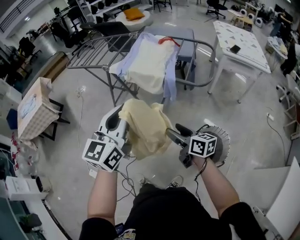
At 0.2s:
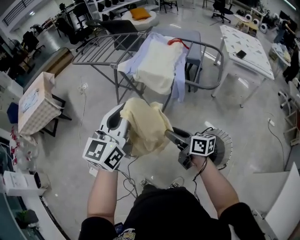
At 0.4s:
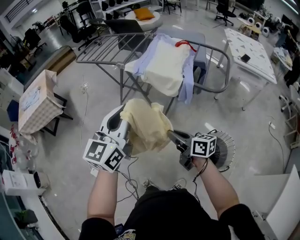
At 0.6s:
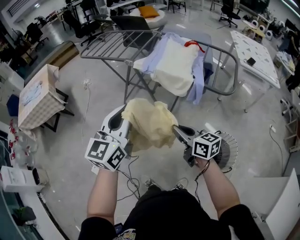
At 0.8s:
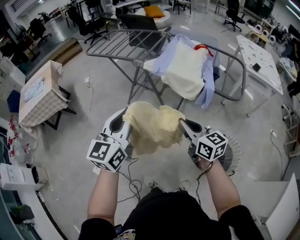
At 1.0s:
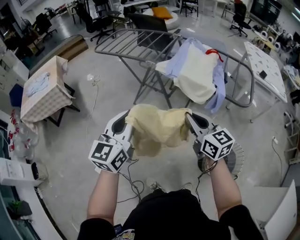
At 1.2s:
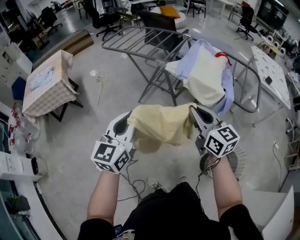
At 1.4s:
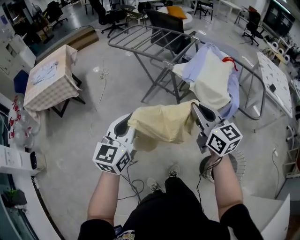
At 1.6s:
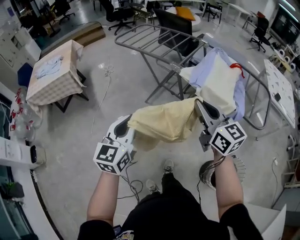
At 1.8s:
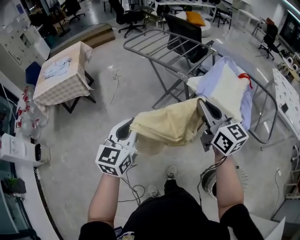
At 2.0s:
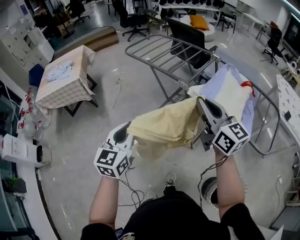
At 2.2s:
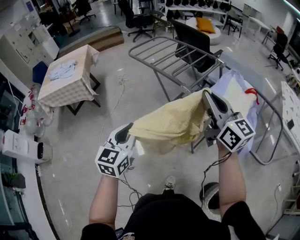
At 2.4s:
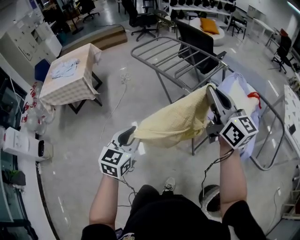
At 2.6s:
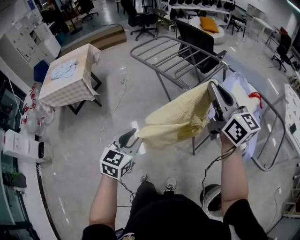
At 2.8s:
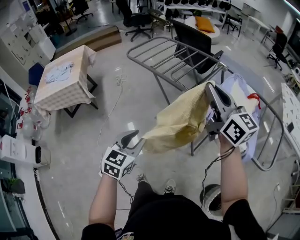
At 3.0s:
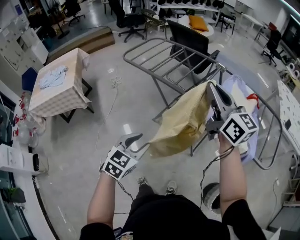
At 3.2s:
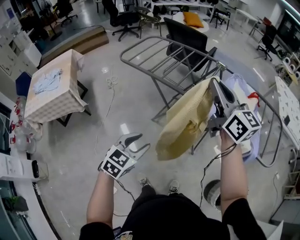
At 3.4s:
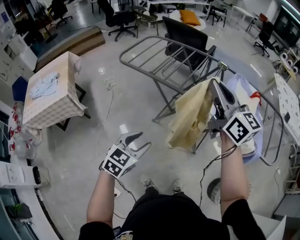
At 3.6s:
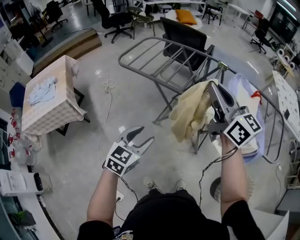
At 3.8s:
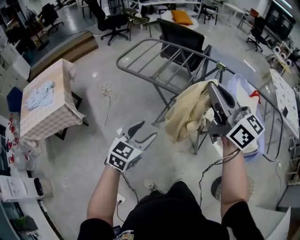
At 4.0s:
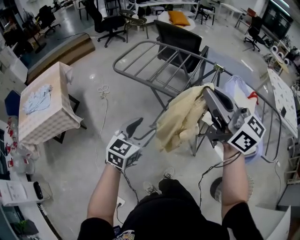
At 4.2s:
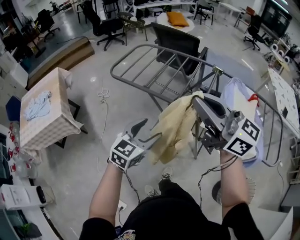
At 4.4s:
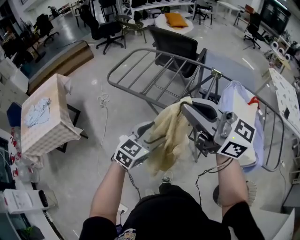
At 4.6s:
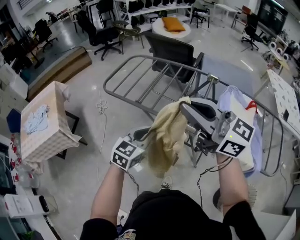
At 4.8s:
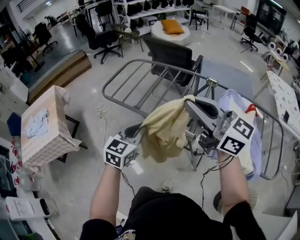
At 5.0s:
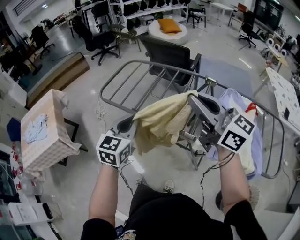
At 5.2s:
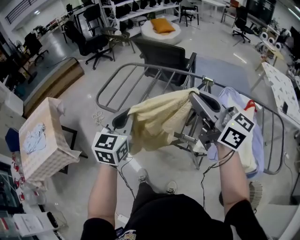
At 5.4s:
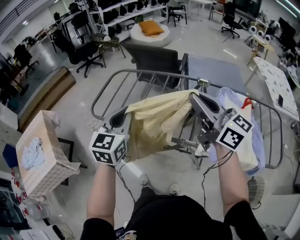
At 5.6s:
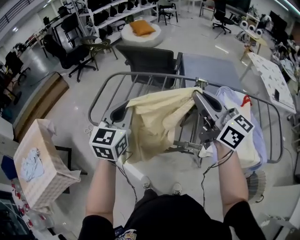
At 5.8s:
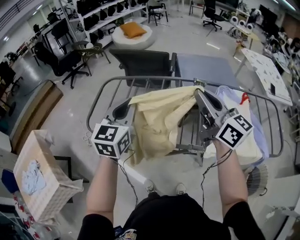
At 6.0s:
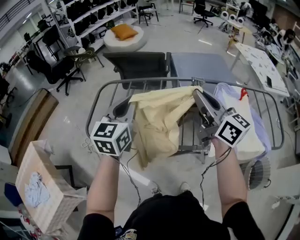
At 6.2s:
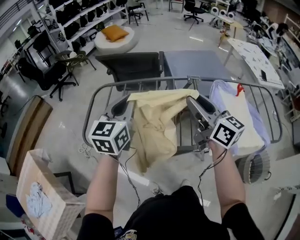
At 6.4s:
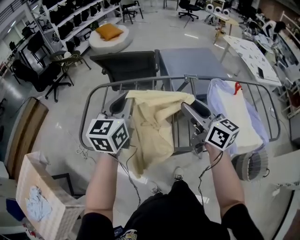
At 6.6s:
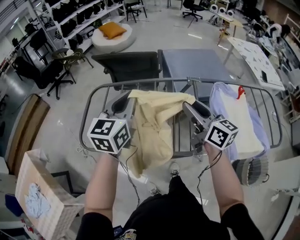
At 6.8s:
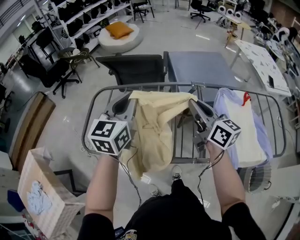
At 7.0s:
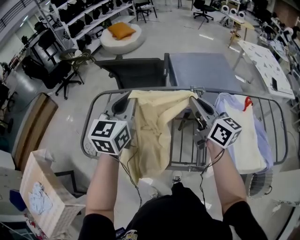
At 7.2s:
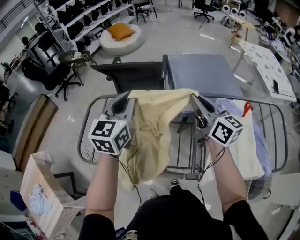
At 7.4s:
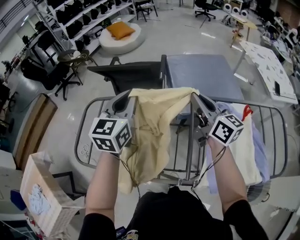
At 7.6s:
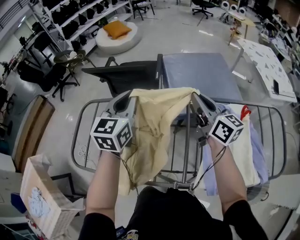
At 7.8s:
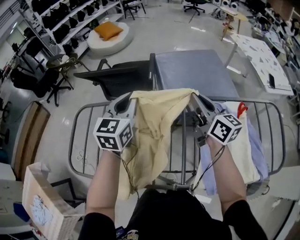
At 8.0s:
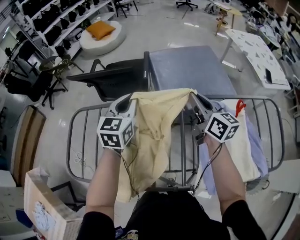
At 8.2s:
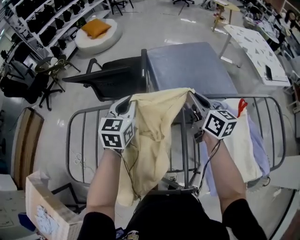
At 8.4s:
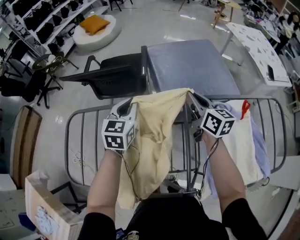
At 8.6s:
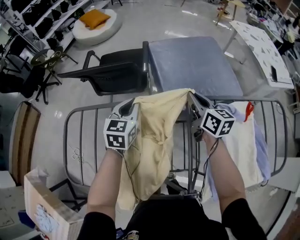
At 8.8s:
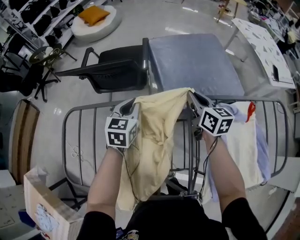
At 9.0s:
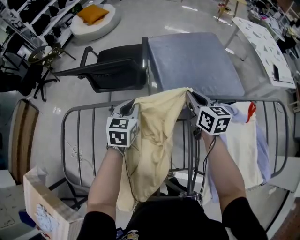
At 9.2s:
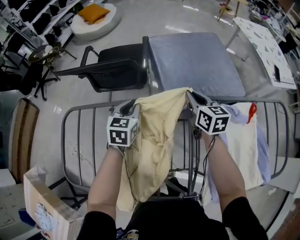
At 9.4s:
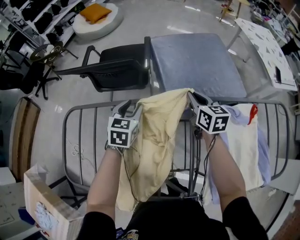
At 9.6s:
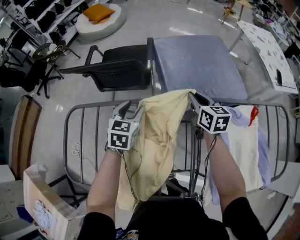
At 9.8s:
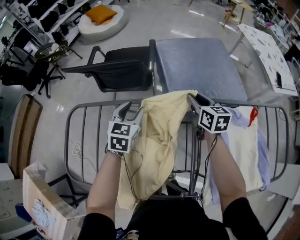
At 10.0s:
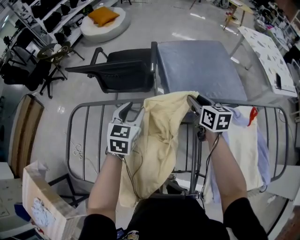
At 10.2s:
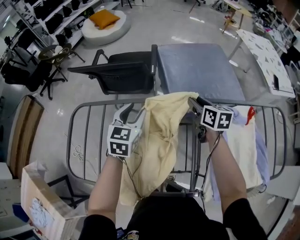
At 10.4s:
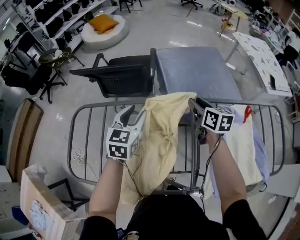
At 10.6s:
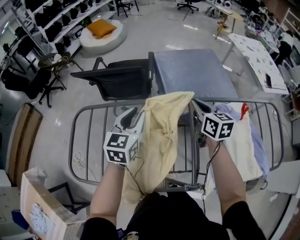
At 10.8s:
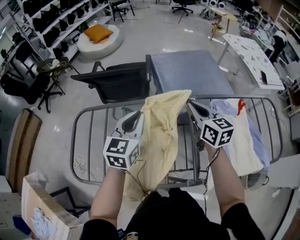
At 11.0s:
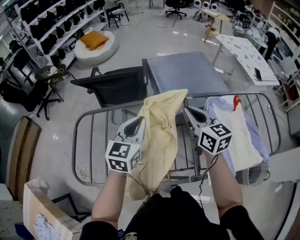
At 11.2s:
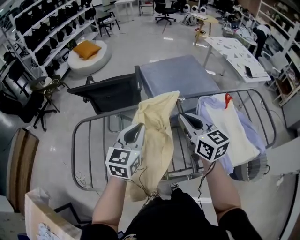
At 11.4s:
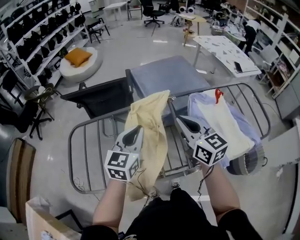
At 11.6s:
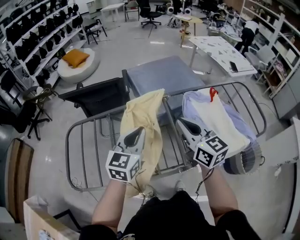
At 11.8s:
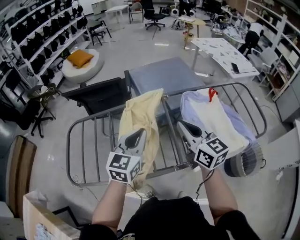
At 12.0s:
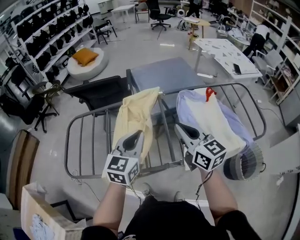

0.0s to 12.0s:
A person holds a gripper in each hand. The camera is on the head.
0.0s to 1.6s: The right gripper goes approximately 40 cm to the left, forward and upward, changes its angle by approximately 40 degrees, and closes up. Meanwhile the left gripper moves to the left, approximately 35 cm, and changes its angle by roughly 20 degrees.
1.6s to 3.0s: The left gripper moves forward and downward, about 15 cm, rotates approximately 30 degrees, and opens. The right gripper moves forward, some 25 cm.
3.0s to 4.4s: The right gripper is displaced to the left and forward by approximately 15 cm, and turns by about 20 degrees. Meanwhile the left gripper shifts about 20 cm forward, and opens.
4.4s to 6.0s: The right gripper moves some 25 cm, and swivels about 50 degrees; the left gripper shifts by about 35 cm, and closes up.
6.0s to 7.6s: The right gripper heads forward, to the right and downward, covering roughly 25 cm, and opens, then closes again, while the left gripper goes roughly 25 cm forward and to the right.
7.6s to 9.0s: The two grippers go roughly 25 cm downward and forward. The left gripper turns by roughly 20 degrees, while the right gripper swivels roughly 30 degrees.
9.0s to 10.4s: The left gripper heads upward and backward, covering some 10 cm, and opens its fingers. Meanwhile the right gripper shifts by approximately 5 cm, and opens up.
10.4s to 12.0s: The right gripper moves backward and upward, approximately 35 cm, changes its angle by about 30 degrees, and closes its fingers. Meanwhile the left gripper heads backward and to the right, covering roughly 25 cm, and closes its fingers.

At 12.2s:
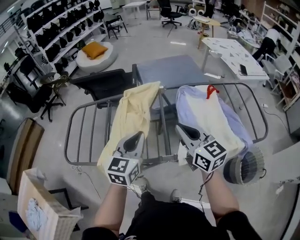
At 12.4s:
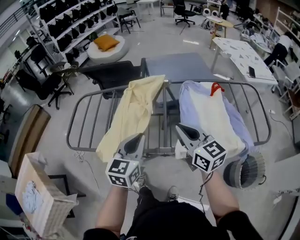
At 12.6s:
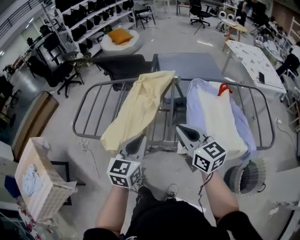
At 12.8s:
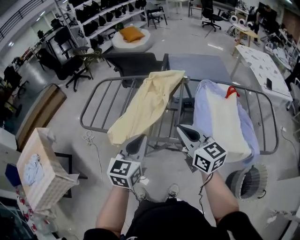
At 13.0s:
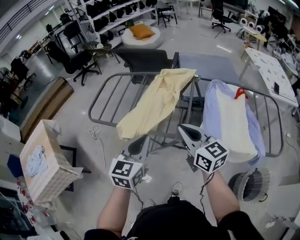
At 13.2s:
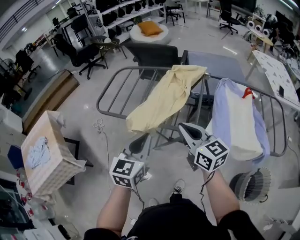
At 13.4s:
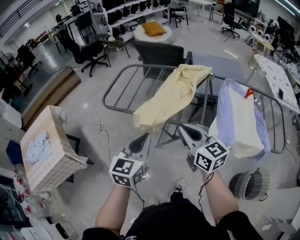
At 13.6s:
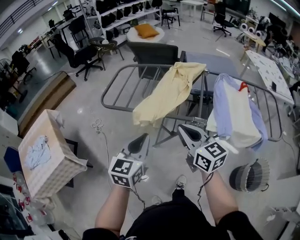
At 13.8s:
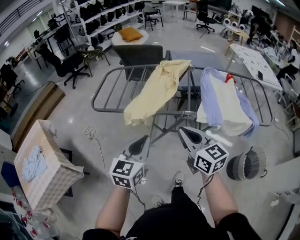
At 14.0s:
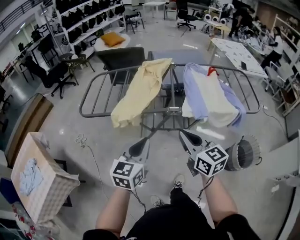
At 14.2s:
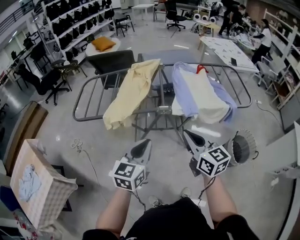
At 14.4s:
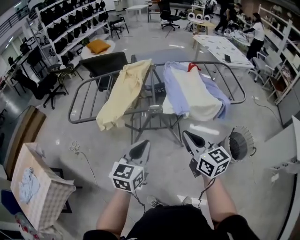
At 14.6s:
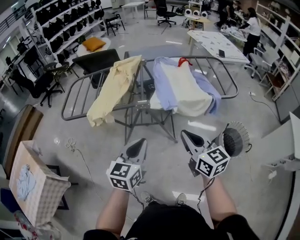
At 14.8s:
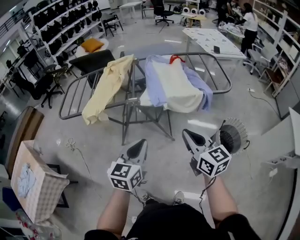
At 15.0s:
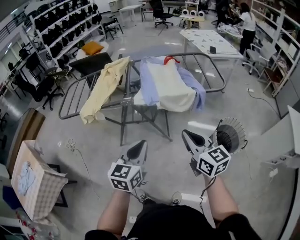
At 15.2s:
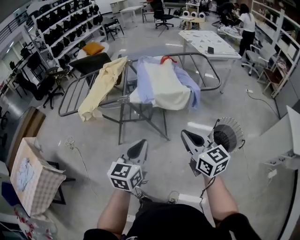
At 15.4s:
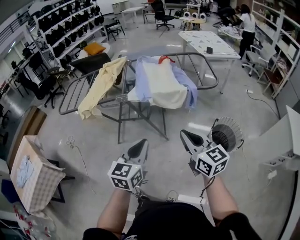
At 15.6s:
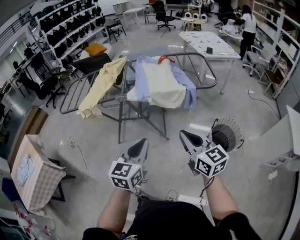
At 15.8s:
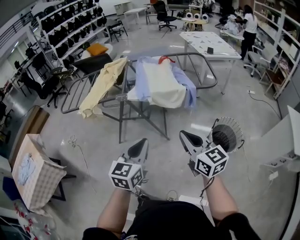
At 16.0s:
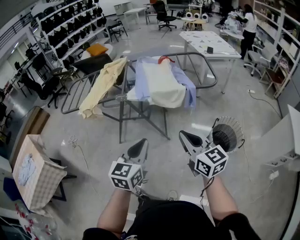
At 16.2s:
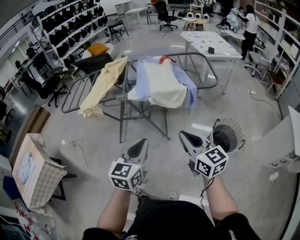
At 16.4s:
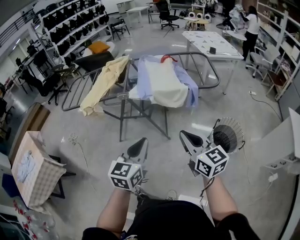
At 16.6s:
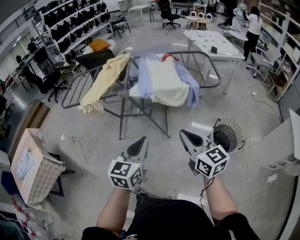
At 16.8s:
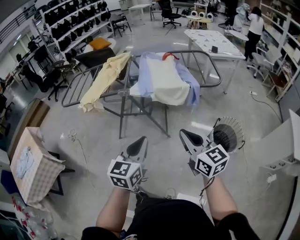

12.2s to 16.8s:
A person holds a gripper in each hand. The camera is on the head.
12.2s to 13.8s: The two grippers go some 30 cm backward and to the left.
13.8s to 15.2s: The two grippers go about 40 cm to the right and backward.
15.2s to 16.8s: The grippers stay close to where they were, moving slightly.

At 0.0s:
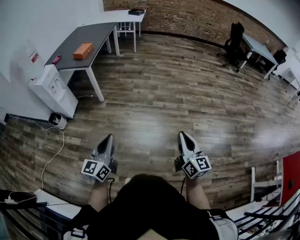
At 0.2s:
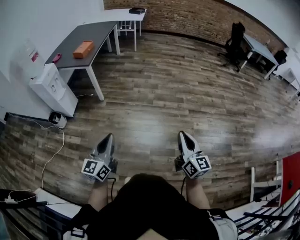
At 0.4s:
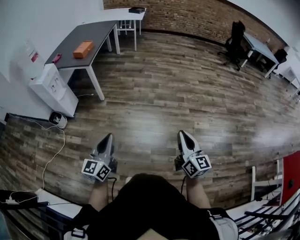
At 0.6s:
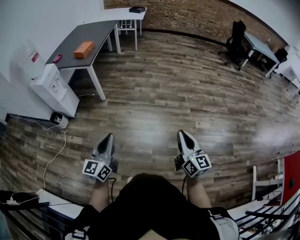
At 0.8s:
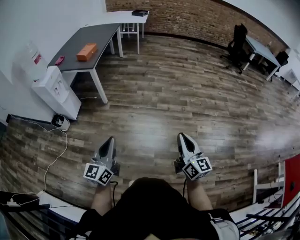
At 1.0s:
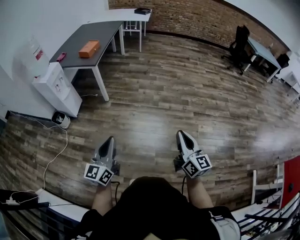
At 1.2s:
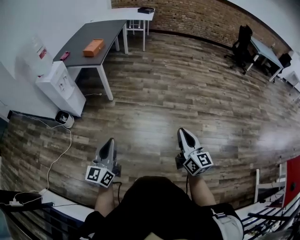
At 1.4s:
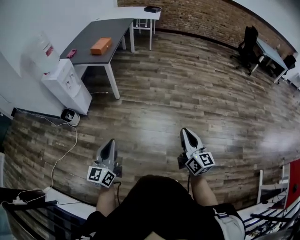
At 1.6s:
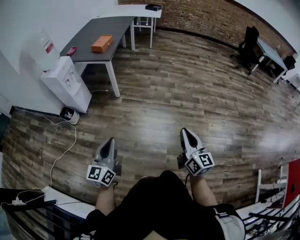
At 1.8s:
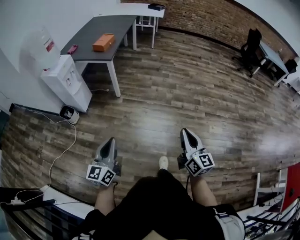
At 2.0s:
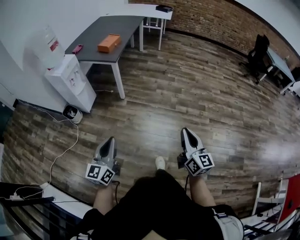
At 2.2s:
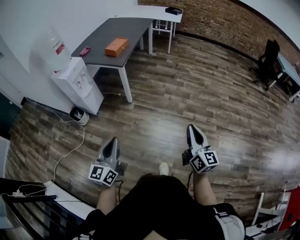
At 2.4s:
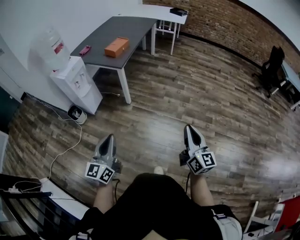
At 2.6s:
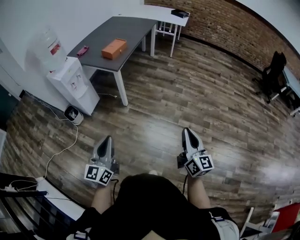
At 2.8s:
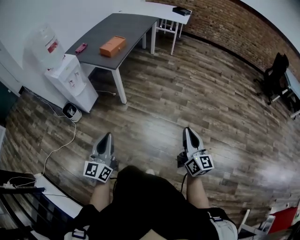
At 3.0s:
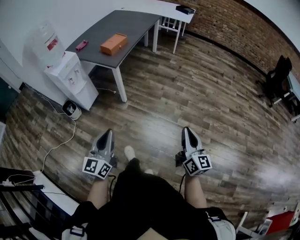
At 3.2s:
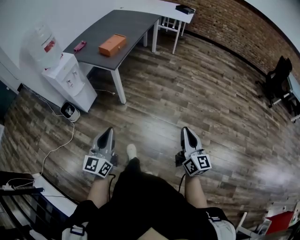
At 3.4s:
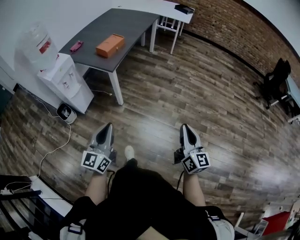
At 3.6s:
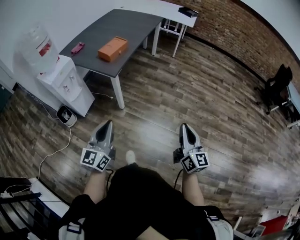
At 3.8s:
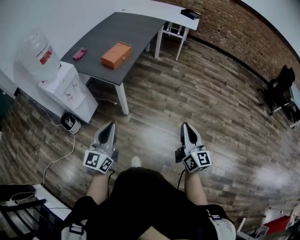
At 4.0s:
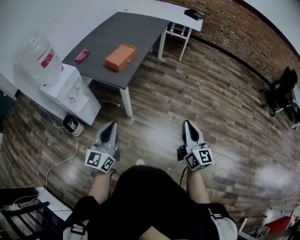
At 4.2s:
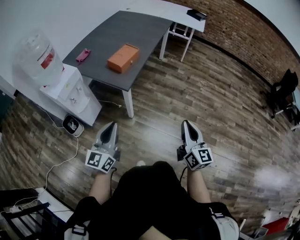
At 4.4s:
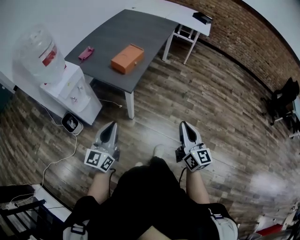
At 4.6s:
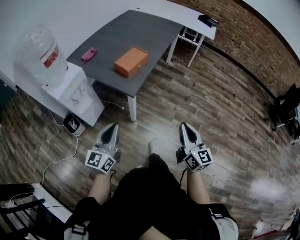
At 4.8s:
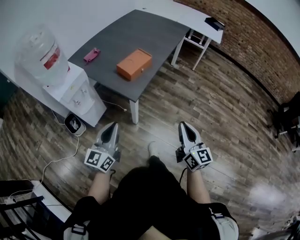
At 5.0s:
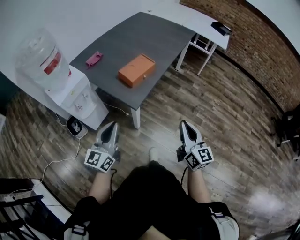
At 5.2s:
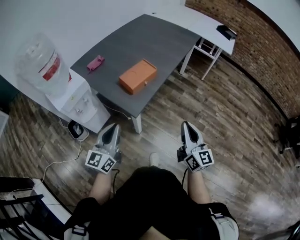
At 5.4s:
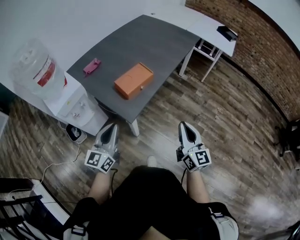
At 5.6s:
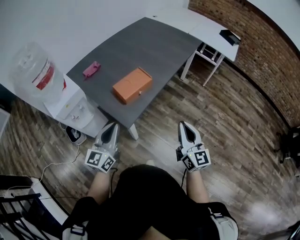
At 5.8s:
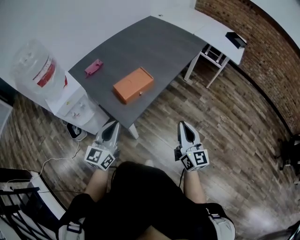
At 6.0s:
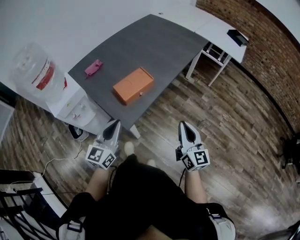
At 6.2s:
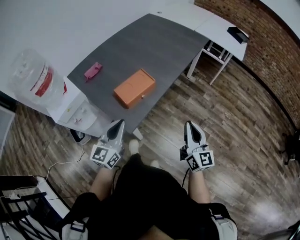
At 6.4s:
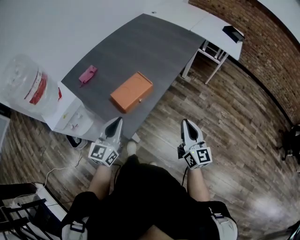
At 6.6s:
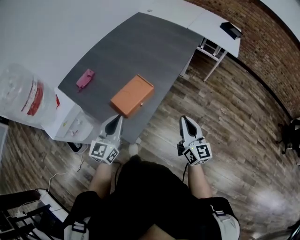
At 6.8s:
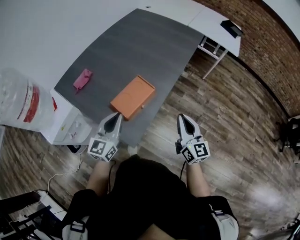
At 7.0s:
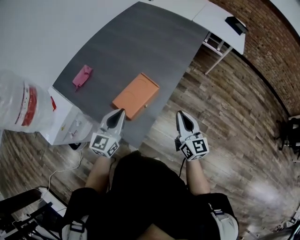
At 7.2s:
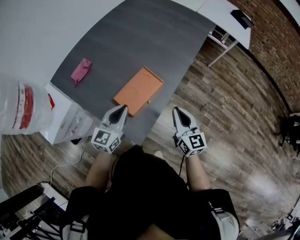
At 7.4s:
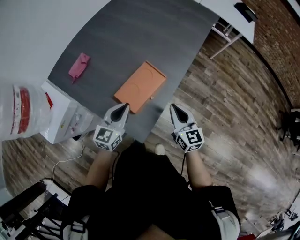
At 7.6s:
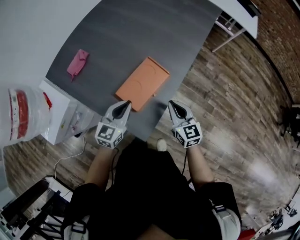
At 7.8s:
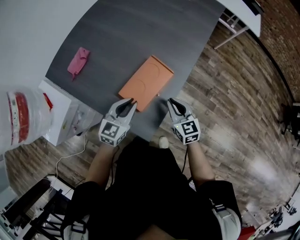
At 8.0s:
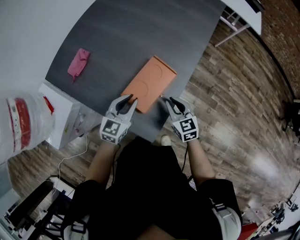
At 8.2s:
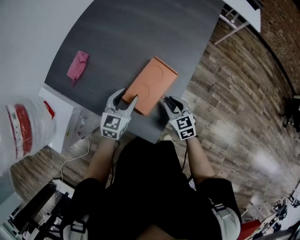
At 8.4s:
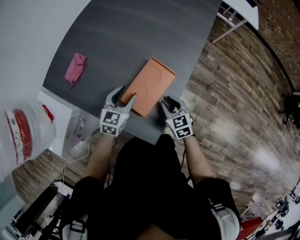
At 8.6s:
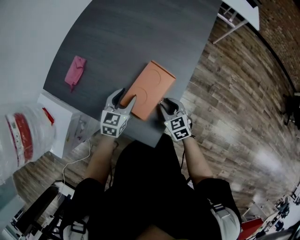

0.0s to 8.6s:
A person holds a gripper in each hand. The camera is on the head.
0.0s to 1.4s: The two grippers go some 15 cm to the left.
1.4s to 2.8s: The grippers both shift forward by approximately 20 cm.
2.8s to 4.4s: The left gripper travels forward by some 30 cm. The right gripper is displaced forward and to the left by roughly 30 cm.
4.4s to 5.8s: Both grippers move forward, roughly 25 cm.
5.8s to 7.2s: The left gripper travels forward and downward by some 20 cm; the right gripper shifts roughly 20 cm forward, to the left and downward.
7.2s to 8.6s: The right gripper travels downward and to the left by some 20 cm, tilts its fingers about 30 degrees downward, and opens up, while the left gripper is displaced downward and forward by roughly 15 cm, rotates approximately 20 degrees, and opens up.
